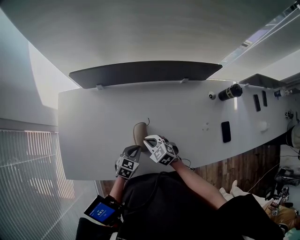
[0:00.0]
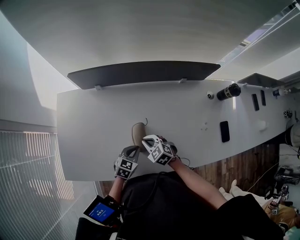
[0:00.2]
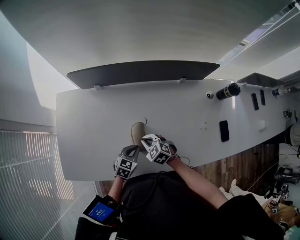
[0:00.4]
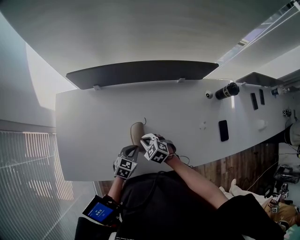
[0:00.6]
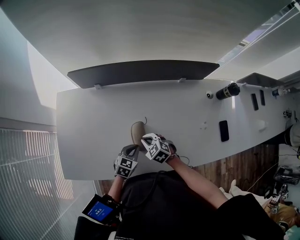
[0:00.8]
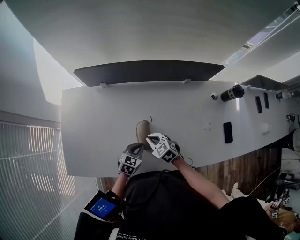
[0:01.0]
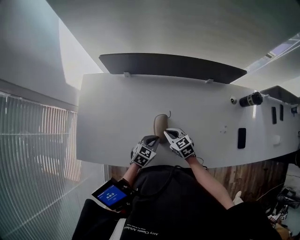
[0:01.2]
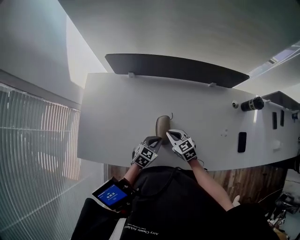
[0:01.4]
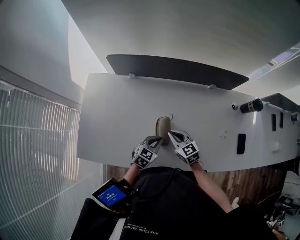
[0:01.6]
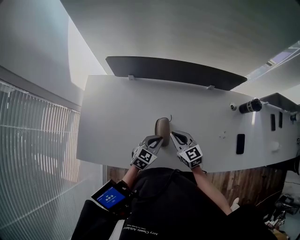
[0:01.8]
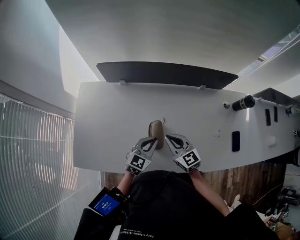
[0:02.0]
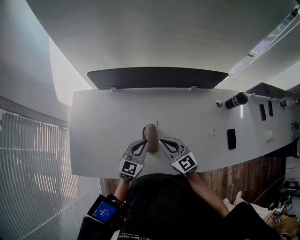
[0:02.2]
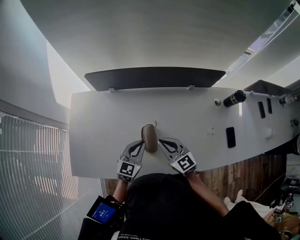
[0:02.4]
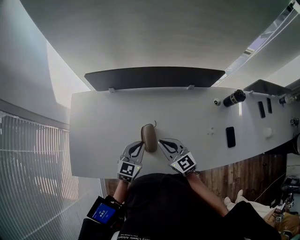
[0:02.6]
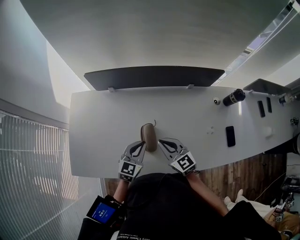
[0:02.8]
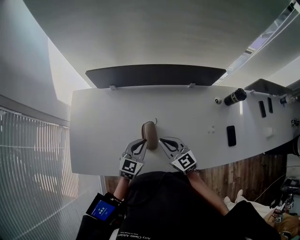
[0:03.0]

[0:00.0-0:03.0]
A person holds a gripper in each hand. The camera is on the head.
0:00.0 to 0:01.6: The right gripper changes place by roughly 5 cm.
0:01.6 to 0:03.0: Both grippers travel together upward, roughly 10 cm.

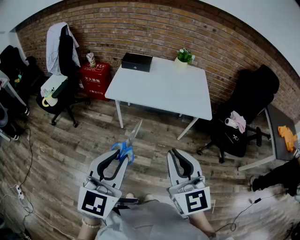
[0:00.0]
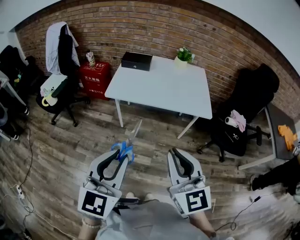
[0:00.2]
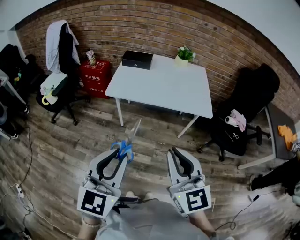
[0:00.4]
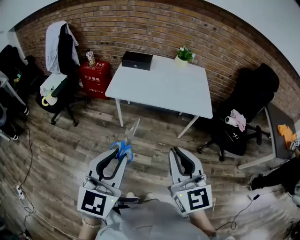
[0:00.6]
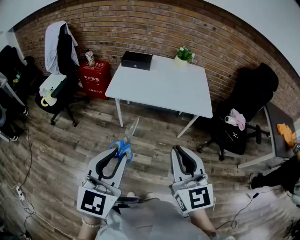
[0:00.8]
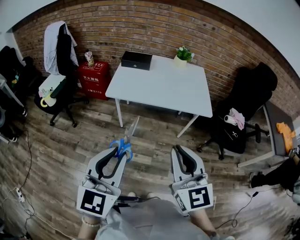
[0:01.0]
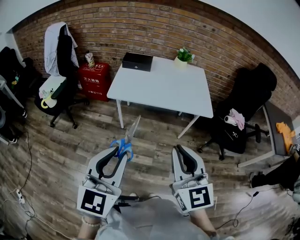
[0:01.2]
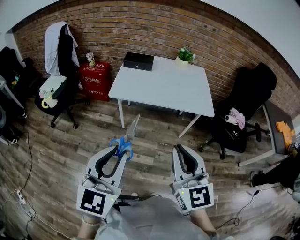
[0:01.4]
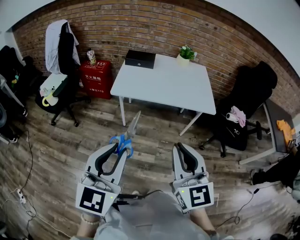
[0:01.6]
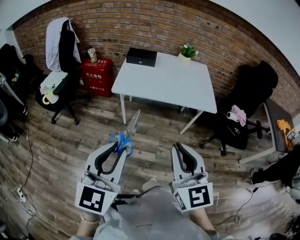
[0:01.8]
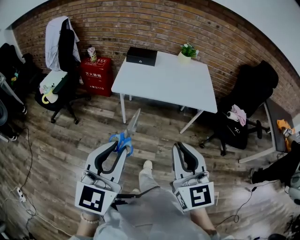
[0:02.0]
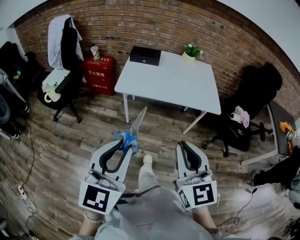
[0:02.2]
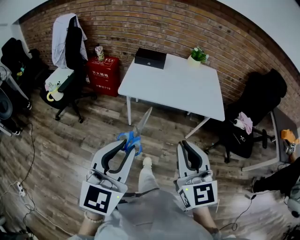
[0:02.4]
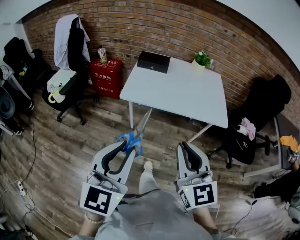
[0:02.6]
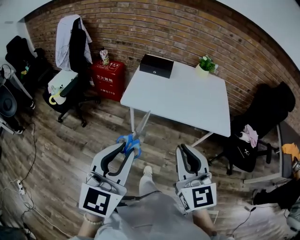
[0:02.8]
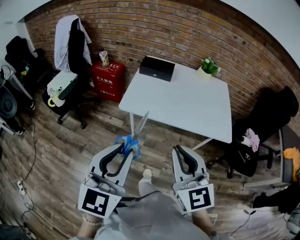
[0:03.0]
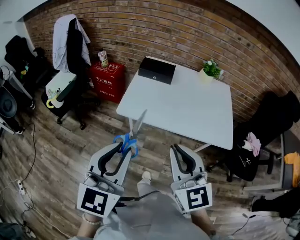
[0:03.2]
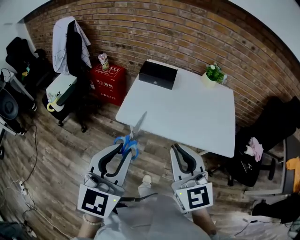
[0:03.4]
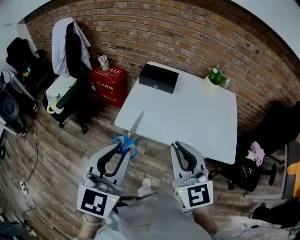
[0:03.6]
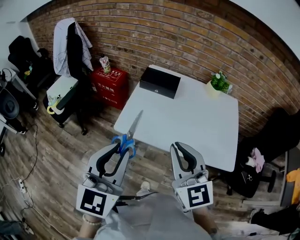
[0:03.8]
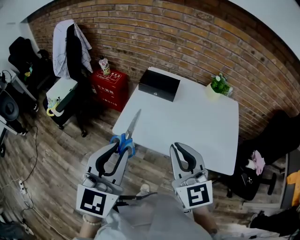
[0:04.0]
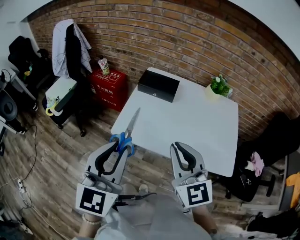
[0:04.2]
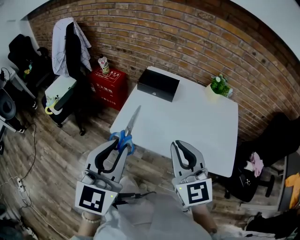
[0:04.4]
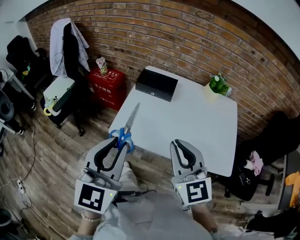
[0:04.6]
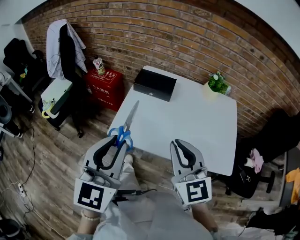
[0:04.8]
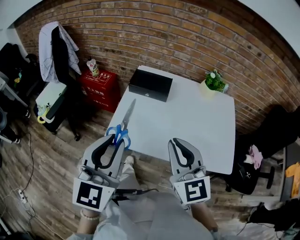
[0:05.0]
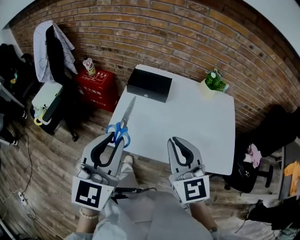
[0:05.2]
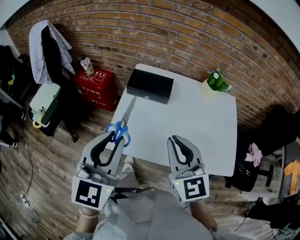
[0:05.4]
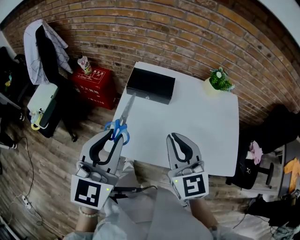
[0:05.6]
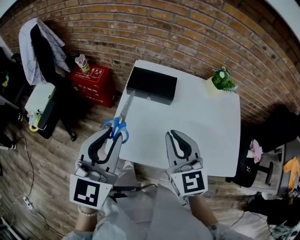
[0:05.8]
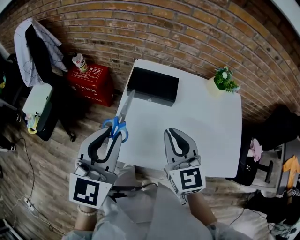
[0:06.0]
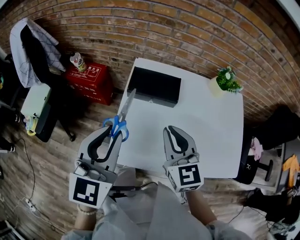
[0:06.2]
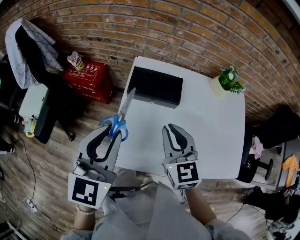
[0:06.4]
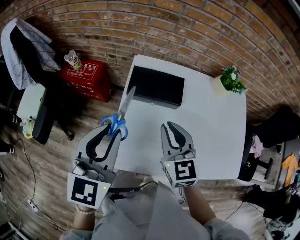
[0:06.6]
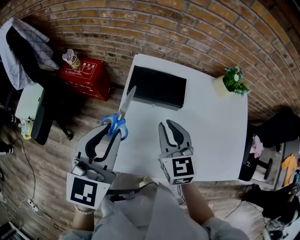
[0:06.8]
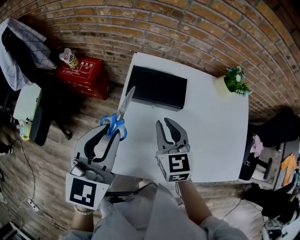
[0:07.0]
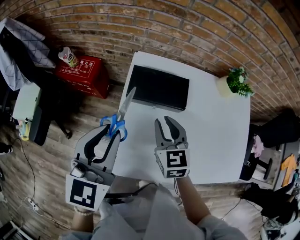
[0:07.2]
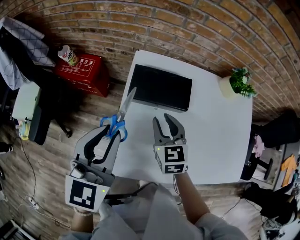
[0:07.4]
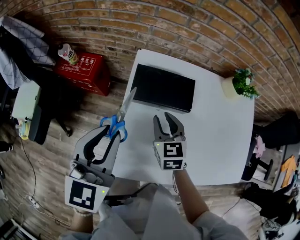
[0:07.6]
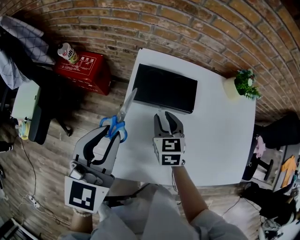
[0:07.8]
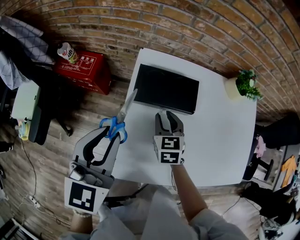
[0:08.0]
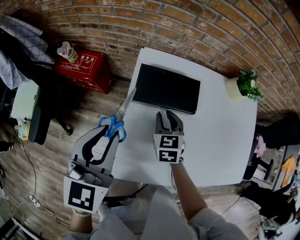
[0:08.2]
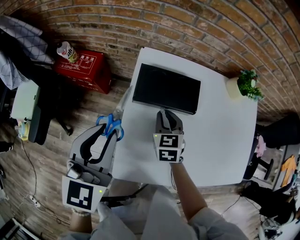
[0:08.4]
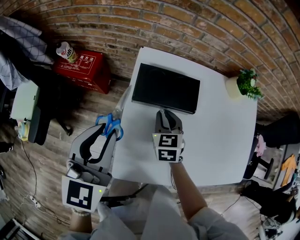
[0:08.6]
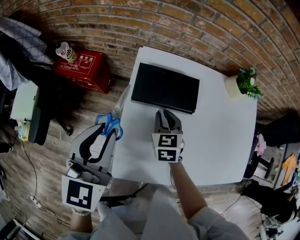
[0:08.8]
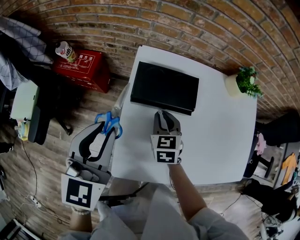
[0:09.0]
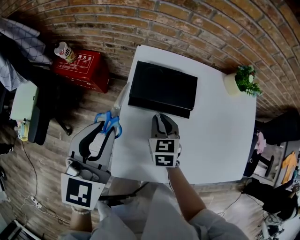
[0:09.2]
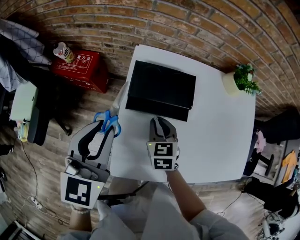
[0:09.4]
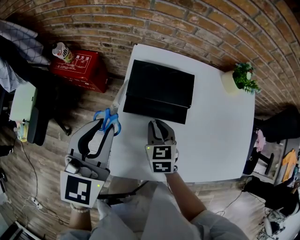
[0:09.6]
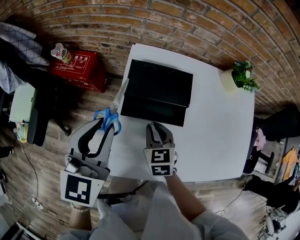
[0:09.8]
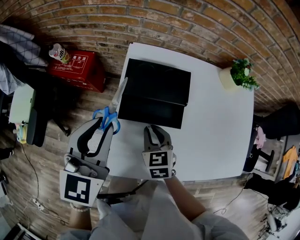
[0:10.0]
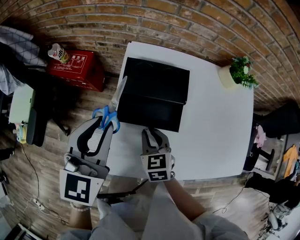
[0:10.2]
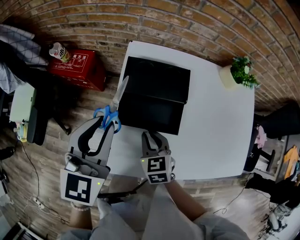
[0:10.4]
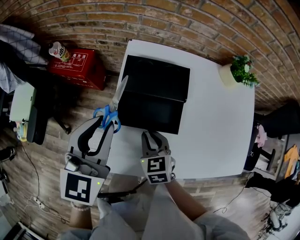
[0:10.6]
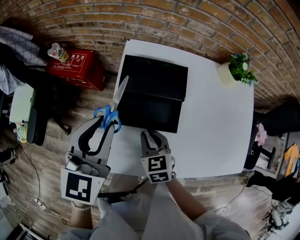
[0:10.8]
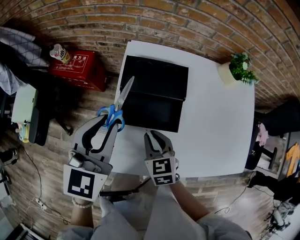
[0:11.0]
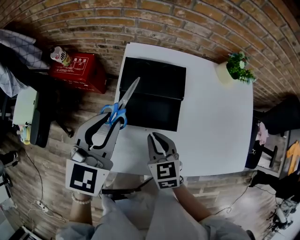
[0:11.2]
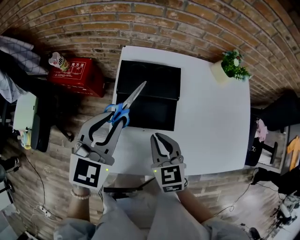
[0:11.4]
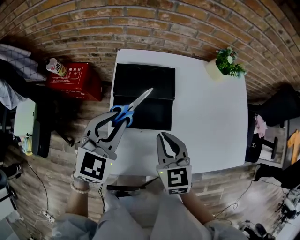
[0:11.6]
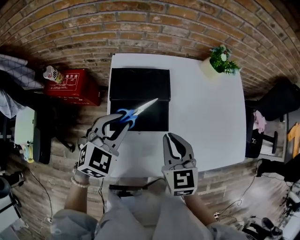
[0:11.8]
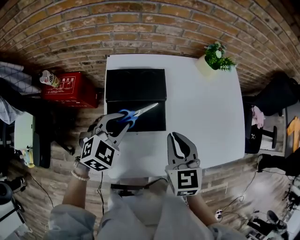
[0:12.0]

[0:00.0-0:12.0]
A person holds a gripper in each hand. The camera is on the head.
0:00.0 to 0:01.6: Both grippers travel together to the left, about 5 cm.
0:01.6 to 0:03.0: The two grippers go some 20 cm forward.
0:03.0 to 0:04.4: Both grippers move forward, approximately 25 cm.
0:04.4 to 0:06.0: Both grippers move forward, roughly 25 cm.
0:06.0 to 0:07.6: The right gripper moves downward and forward, roughly 25 cm, and changes its angle by roughly 20 degrees, while the left gripper shifts approximately 15 cm forward and downward.
0:07.6 to 0:09.0: The right gripper ends up some 5 cm from where it was.
0:09.0 to 0:10.4: The right gripper heads backward, covering about 10 cm.
0:10.4 to 0:12.0: The left gripper heads downward and to the right, covering about 15 cm, and swivels approximately 50 degrees. The right gripper travels upward and to the right by roughly 20 cm, and changes its angle by approximately 20 degrees.

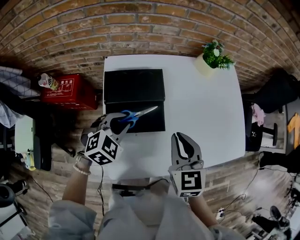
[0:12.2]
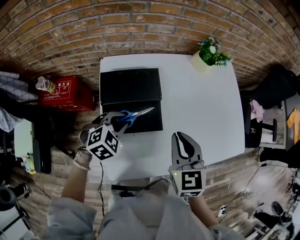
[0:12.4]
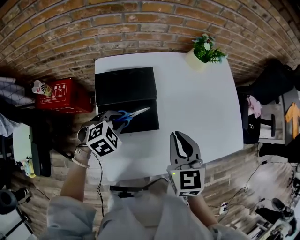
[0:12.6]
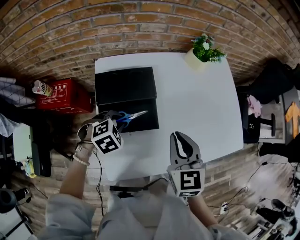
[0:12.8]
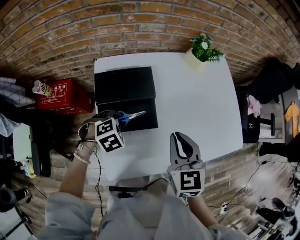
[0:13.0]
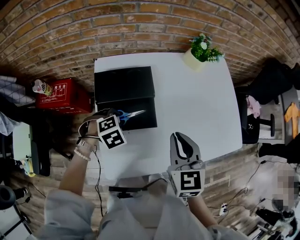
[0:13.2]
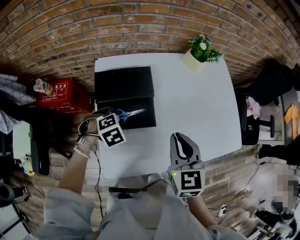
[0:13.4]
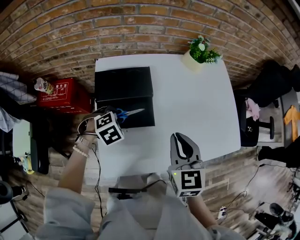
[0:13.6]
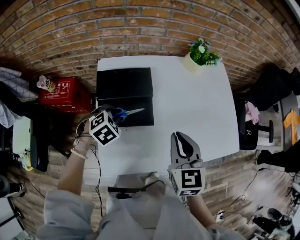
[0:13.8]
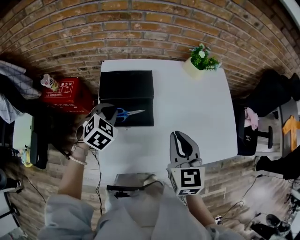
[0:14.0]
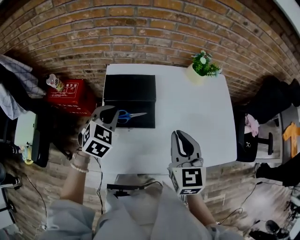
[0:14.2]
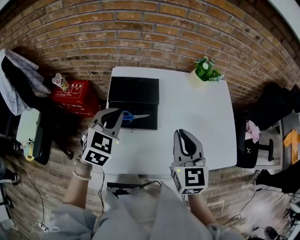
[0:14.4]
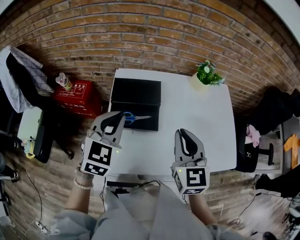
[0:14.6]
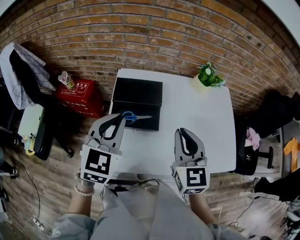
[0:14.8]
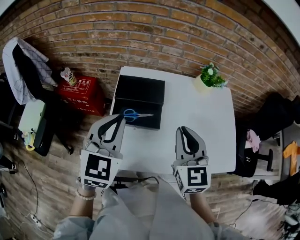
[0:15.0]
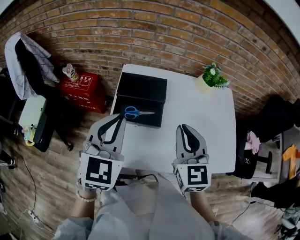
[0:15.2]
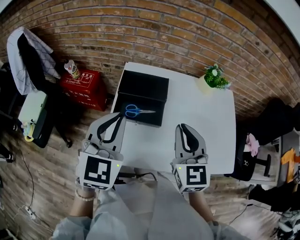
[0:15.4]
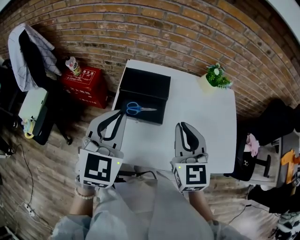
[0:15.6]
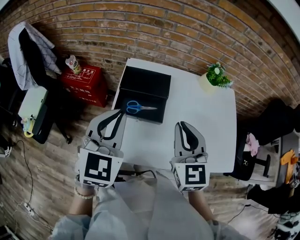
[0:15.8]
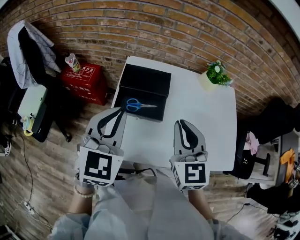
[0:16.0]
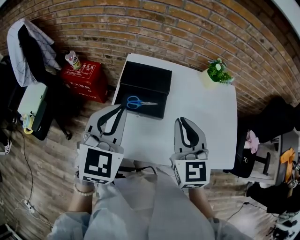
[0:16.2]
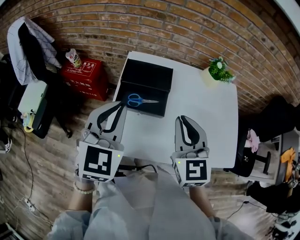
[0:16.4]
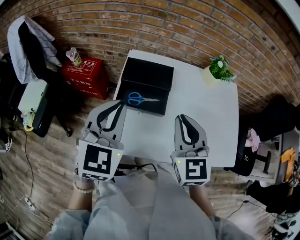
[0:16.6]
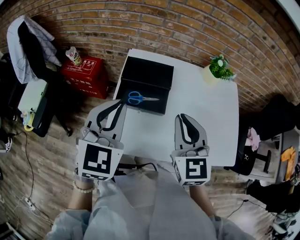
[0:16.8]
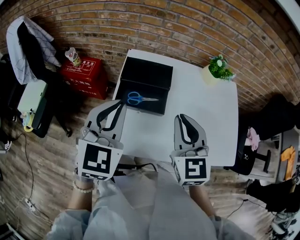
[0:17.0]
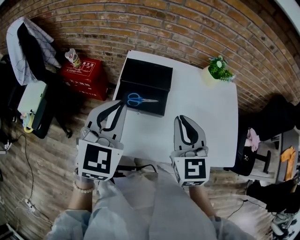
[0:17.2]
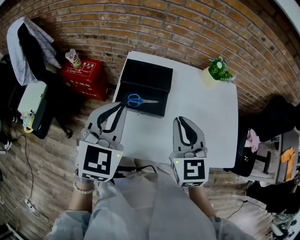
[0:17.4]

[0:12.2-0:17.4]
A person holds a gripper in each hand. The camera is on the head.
0:12.2 to 0:14.0: The right gripper shifts about 5 cm to the right, while the left gripper moves about 5 cm downward and comes back.
0:14.0 to 0:15.6: The left gripper shifts roughly 25 cm upward and backward, and tilts its fingers roughly 30 degrees upward. The right gripper shifts some 10 cm upward.
0:15.6 to 0:17.4: The grippers make only small movements.

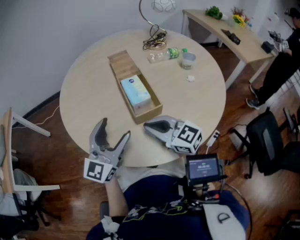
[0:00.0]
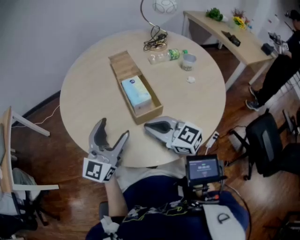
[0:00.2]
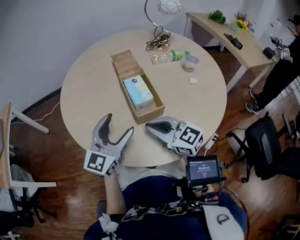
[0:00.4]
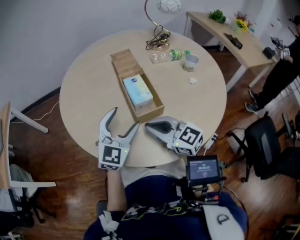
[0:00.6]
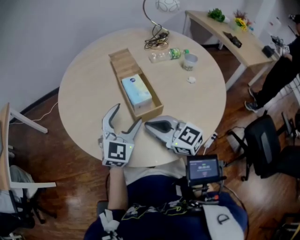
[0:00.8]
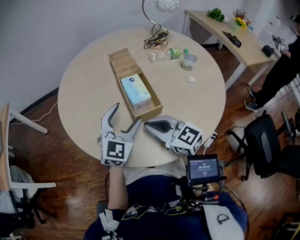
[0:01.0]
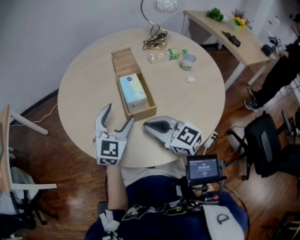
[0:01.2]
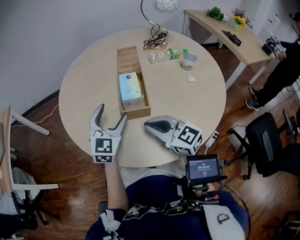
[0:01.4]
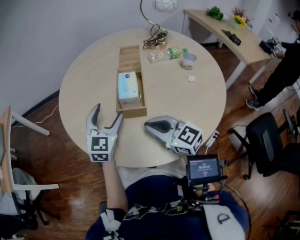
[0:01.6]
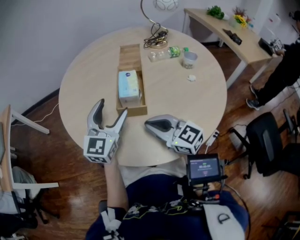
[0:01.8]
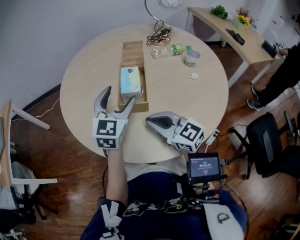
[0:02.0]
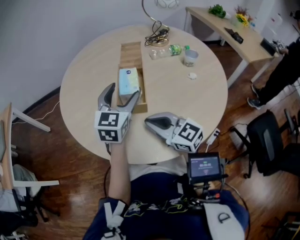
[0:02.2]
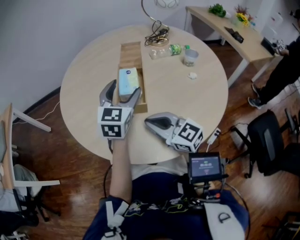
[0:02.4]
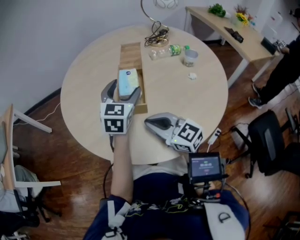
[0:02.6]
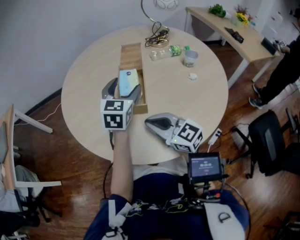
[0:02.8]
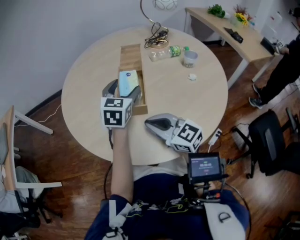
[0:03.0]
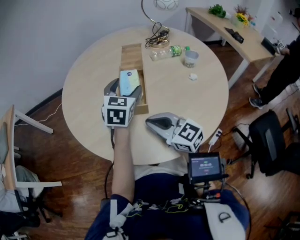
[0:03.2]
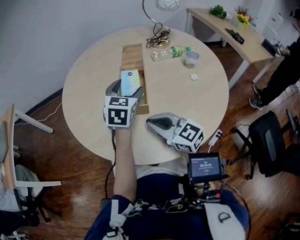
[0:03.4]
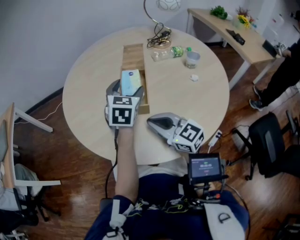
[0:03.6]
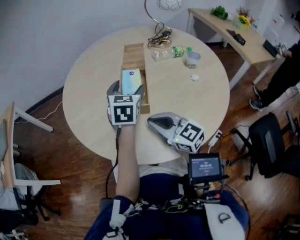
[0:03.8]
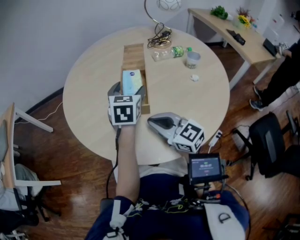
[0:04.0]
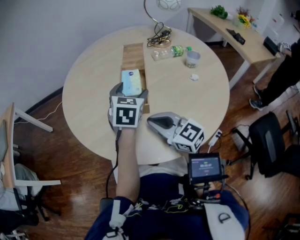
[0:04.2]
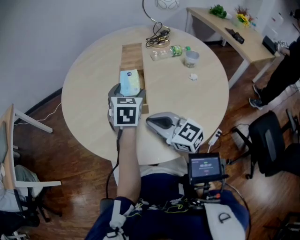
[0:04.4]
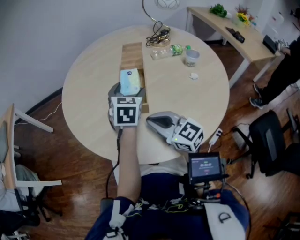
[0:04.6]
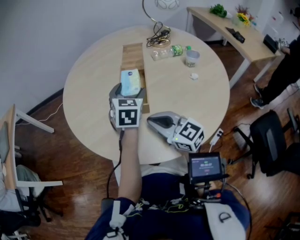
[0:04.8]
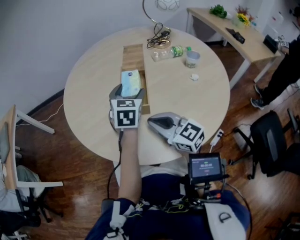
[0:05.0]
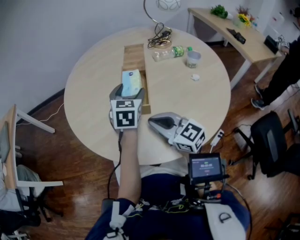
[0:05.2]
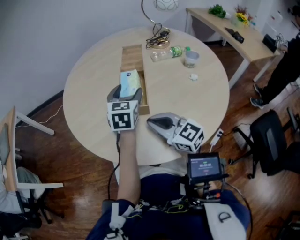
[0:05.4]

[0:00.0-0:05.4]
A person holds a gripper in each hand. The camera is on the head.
0:00.0 to 0:01.4: The left gripper moves forward, about 10 cm, and turns by some 30 degrees.
0:01.4 to 0:02.8: The left gripper is displaced to the right and forward by about 10 cm.
0:02.8 to 0:05.4: The grippers move only a little.
